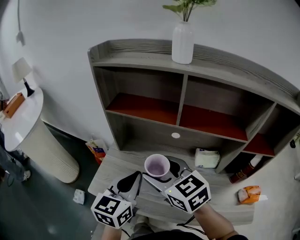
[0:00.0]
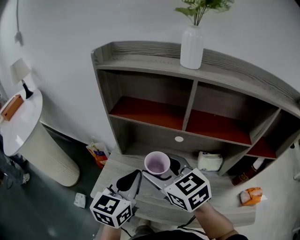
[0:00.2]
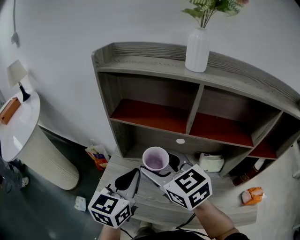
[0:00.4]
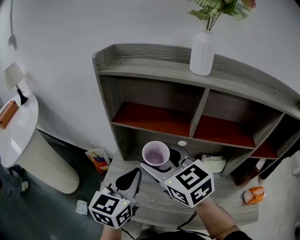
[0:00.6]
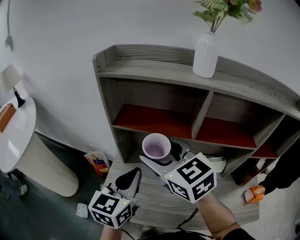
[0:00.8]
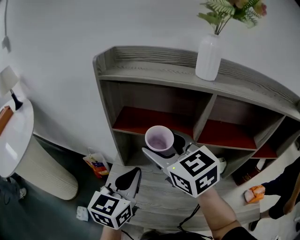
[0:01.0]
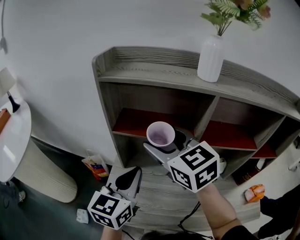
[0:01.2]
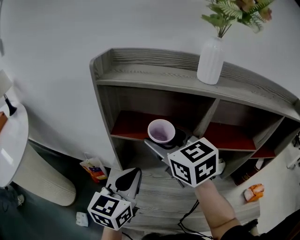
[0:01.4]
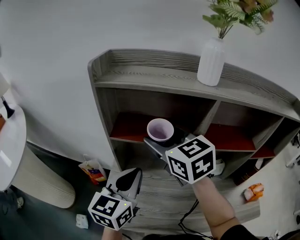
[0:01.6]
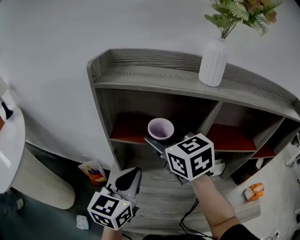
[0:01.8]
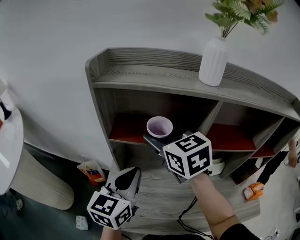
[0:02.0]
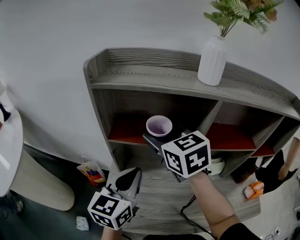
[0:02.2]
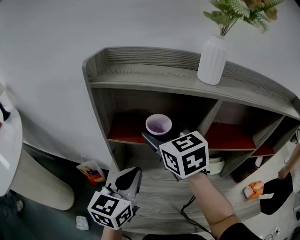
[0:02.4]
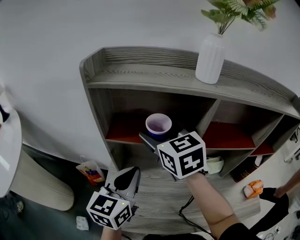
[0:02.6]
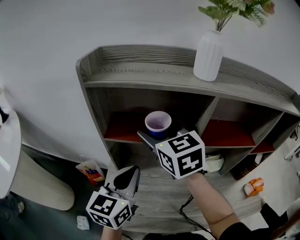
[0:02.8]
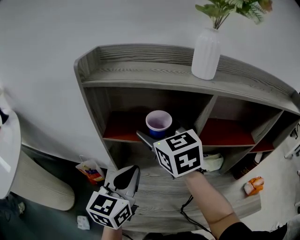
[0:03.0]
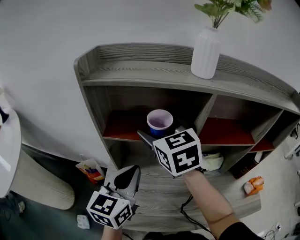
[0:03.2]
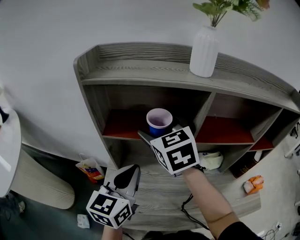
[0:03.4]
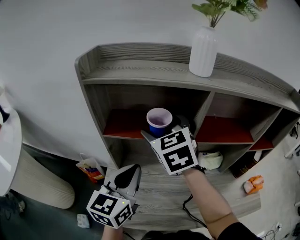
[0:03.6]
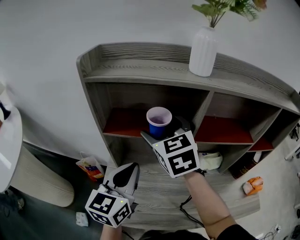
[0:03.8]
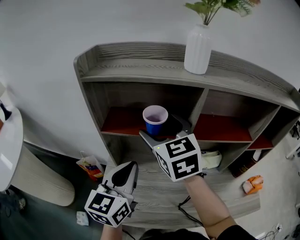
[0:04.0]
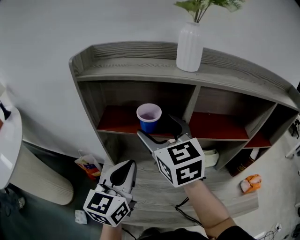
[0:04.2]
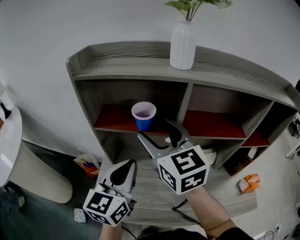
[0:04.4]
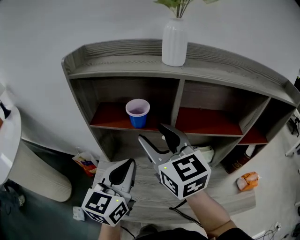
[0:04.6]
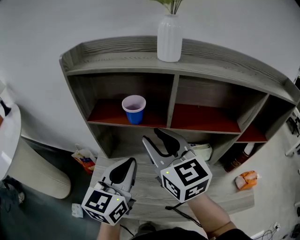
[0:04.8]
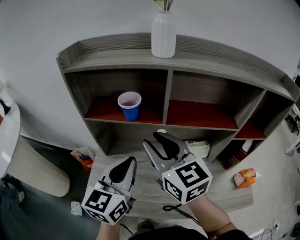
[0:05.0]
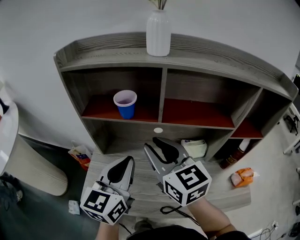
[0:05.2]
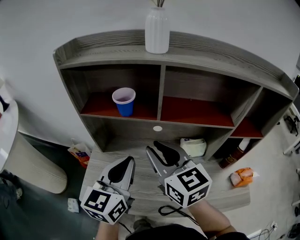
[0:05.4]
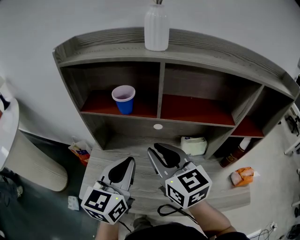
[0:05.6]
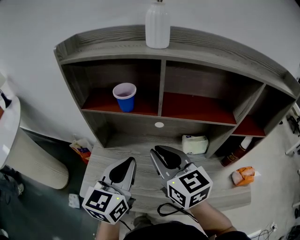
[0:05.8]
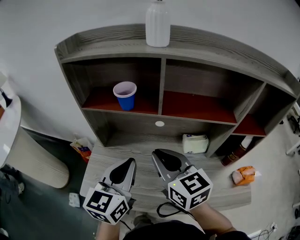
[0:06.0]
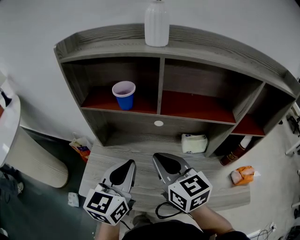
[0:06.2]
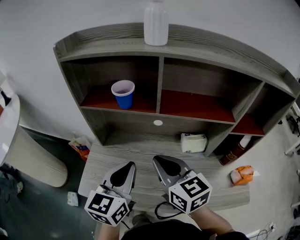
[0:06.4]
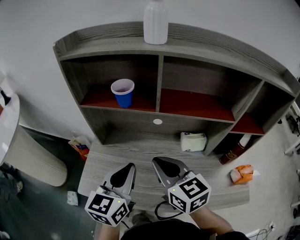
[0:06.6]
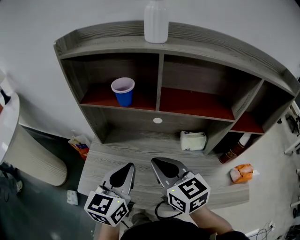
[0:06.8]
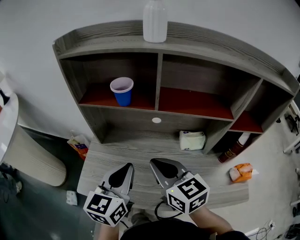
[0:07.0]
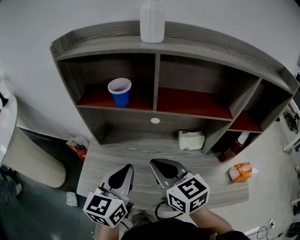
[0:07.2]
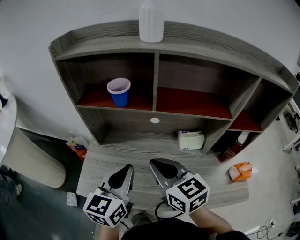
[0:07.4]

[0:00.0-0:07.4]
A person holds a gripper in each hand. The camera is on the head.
0.0 to 1.4 s: The left gripper moves forward and to the left, approximately 15 cm, while the right gripper heads forward and upward, covering about 20 cm.
1.4 to 3.0 s: The right gripper heads forward, covering roughly 5 cm.
3.0 to 4.4 s: The left gripper ends up approximately 5 cm from where it was, while the right gripper travels backward by roughly 10 cm.
4.4 to 6.0 s: The right gripper travels downward, backward and to the right by some 15 cm, and closes. Meanwhile the left gripper heads to the right and backward, covering roughly 10 cm.
6.0 to 7.4 s: The grippers move only a little.

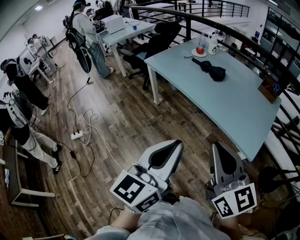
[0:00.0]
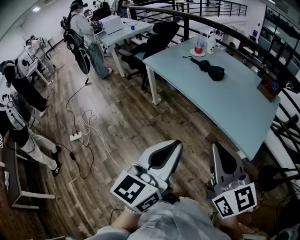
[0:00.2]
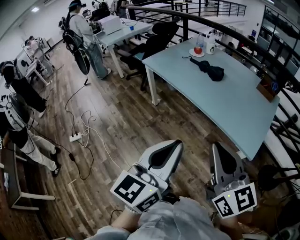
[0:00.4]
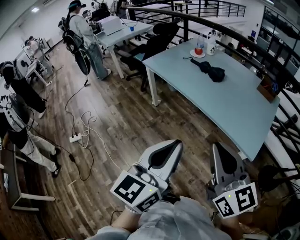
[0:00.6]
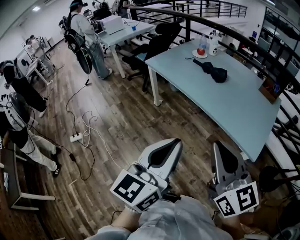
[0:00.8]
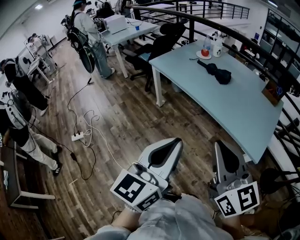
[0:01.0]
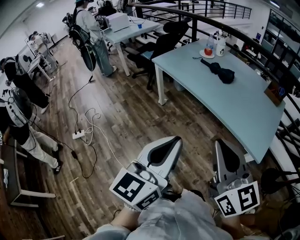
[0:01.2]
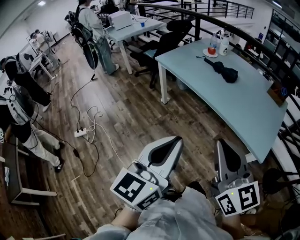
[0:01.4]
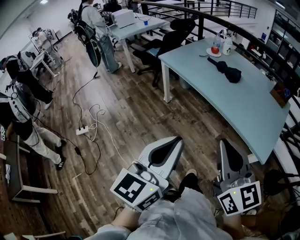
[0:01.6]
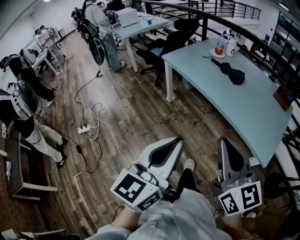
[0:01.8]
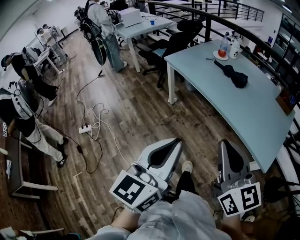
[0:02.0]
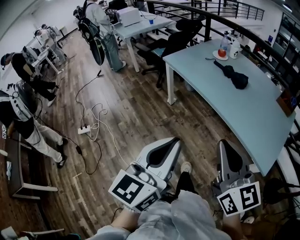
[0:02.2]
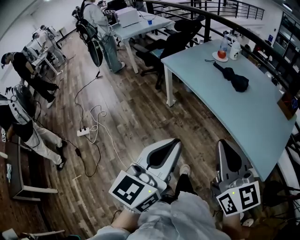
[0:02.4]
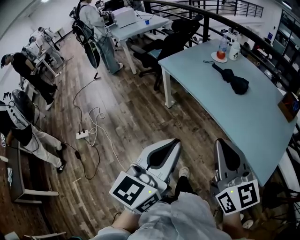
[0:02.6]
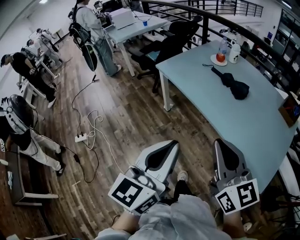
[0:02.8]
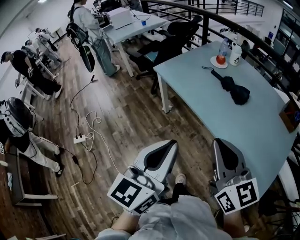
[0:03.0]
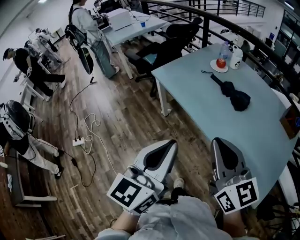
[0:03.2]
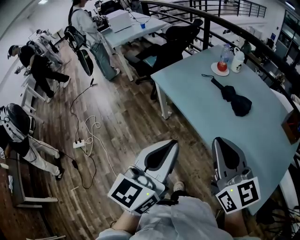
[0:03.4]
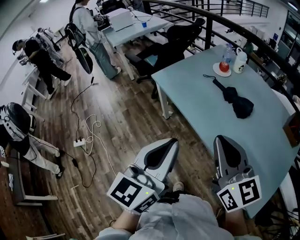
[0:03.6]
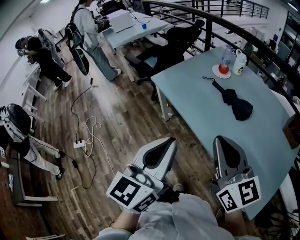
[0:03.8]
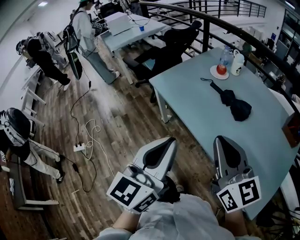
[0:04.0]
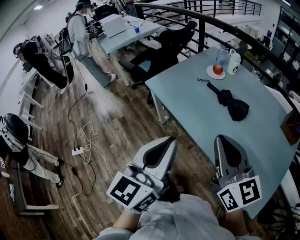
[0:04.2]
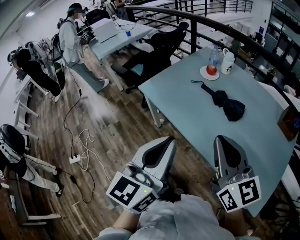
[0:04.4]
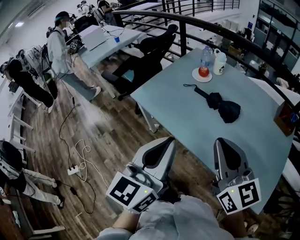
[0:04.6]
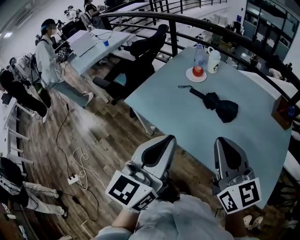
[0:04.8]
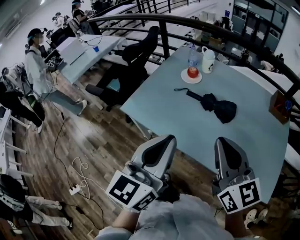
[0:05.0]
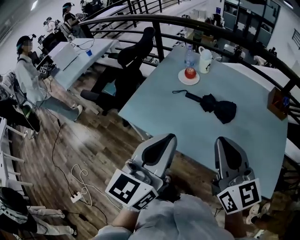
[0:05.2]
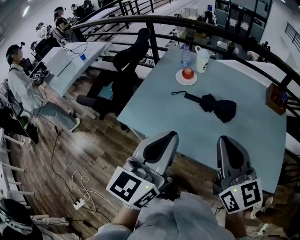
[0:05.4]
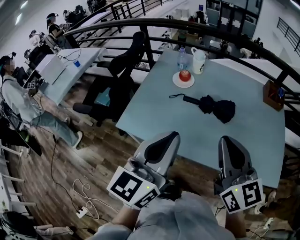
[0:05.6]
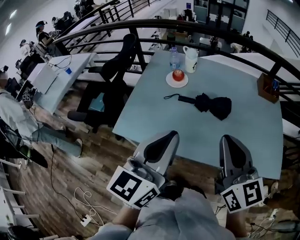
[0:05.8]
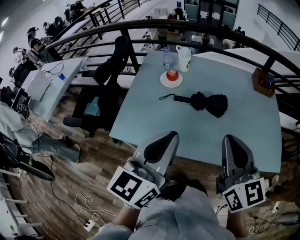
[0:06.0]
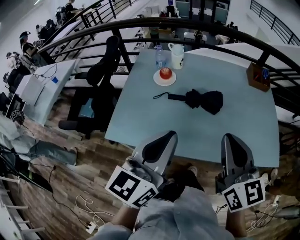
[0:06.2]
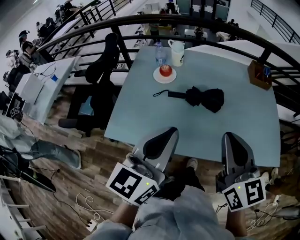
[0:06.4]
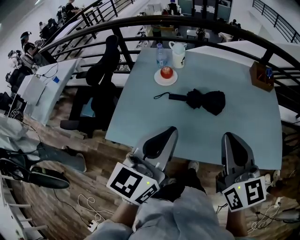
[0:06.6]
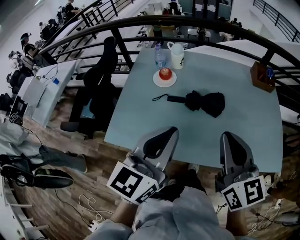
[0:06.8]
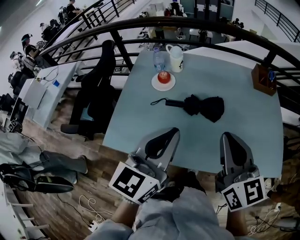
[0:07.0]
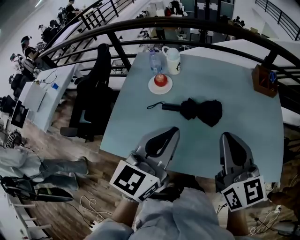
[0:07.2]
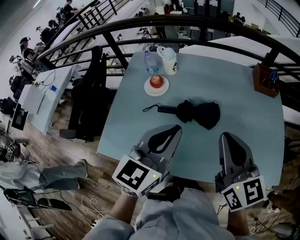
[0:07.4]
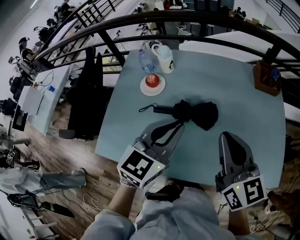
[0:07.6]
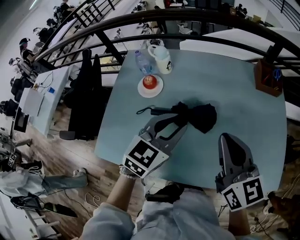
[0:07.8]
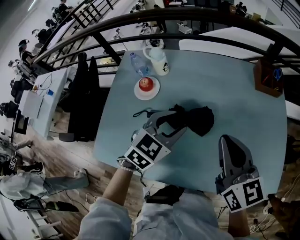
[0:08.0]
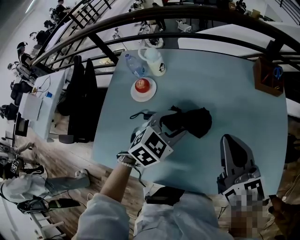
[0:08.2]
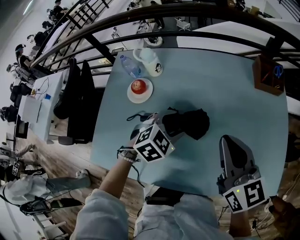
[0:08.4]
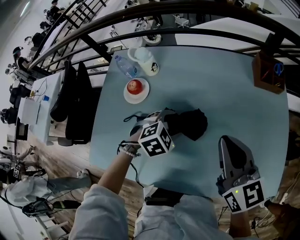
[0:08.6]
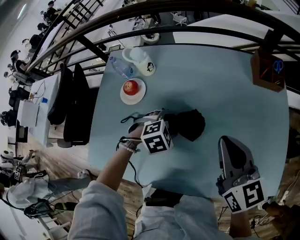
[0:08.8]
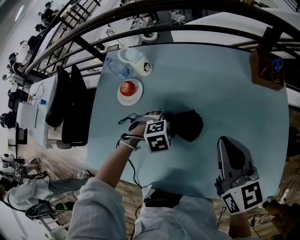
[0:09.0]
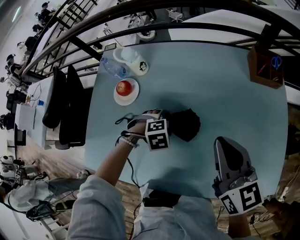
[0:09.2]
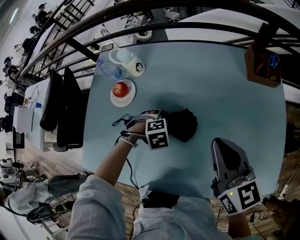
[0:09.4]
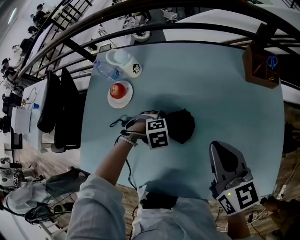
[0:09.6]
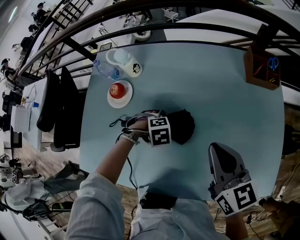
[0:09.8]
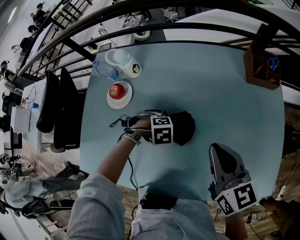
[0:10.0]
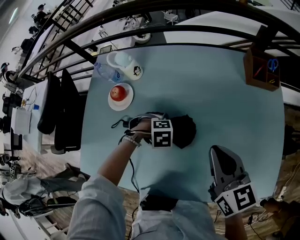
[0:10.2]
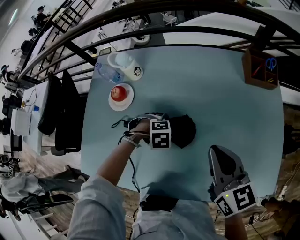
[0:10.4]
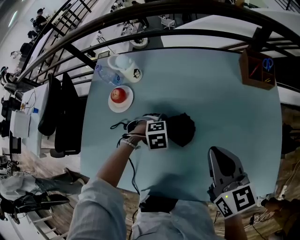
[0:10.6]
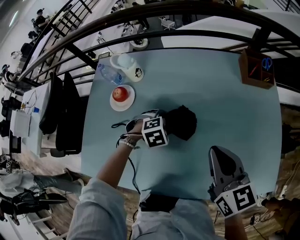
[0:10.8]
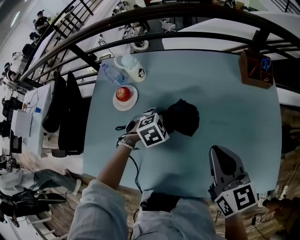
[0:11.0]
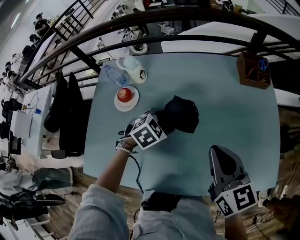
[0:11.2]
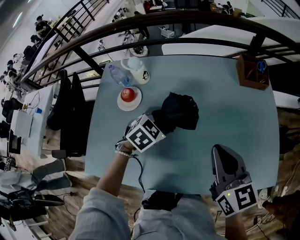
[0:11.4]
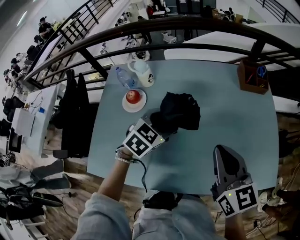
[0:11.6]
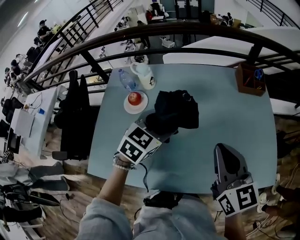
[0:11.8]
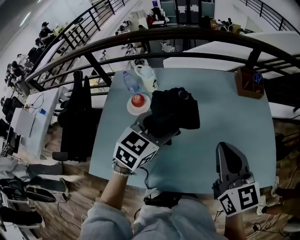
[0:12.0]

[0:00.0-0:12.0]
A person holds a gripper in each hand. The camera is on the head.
0.0 to 1.6 s: Both grippers travel together to the left, roughly 10 cm.
1.6 to 3.0 s: The two grippers go about 25 cm forward.
3.0 to 4.4 s: The two grippers go approximately 15 cm forward.
4.4 to 6.0 s: The right gripper shifts by approximately 10 cm, and changes its angle by some 40 degrees. The left gripper moves roughly 20 cm, and rotates about 40 degrees.
6.0 to 7.6 s: The left gripper shifts roughly 25 cm forward, to the right and downward, and turns by some 30 degrees. The right gripper shifts approximately 20 cm forward and to the right.
7.6 to 9.0 s: The left gripper travels downward and forward by about 30 cm, points its fingers about 60 degrees further downward, and opens up. The right gripper moves forward, to the right and downward, roughly 15 cm.
9.0 to 10.4 s: The left gripper goes roughly 5 cm downward.
10.4 to 12.0 s: The left gripper is displaced upward by roughly 30 cm, and points its fingers some 60 degrees further upward; the right gripper is displaced upward by approximately 10 cm.

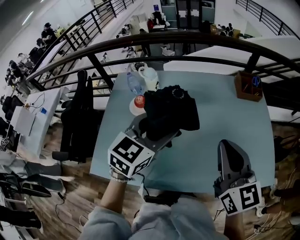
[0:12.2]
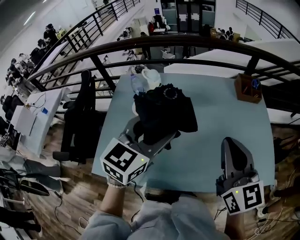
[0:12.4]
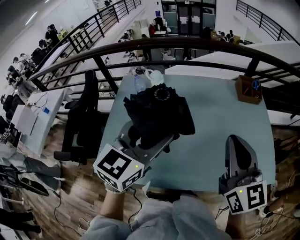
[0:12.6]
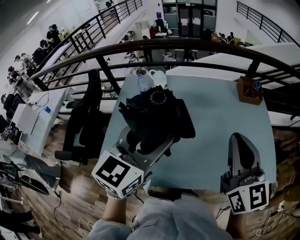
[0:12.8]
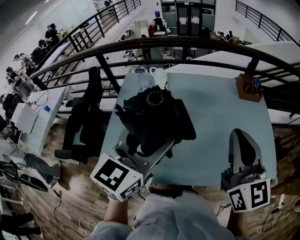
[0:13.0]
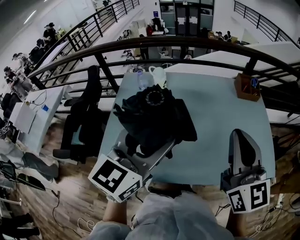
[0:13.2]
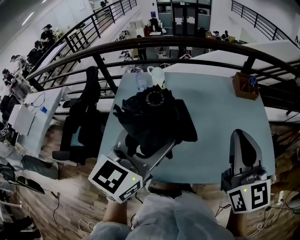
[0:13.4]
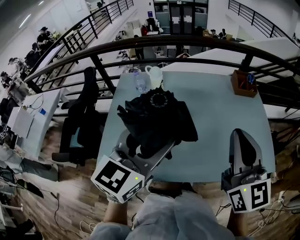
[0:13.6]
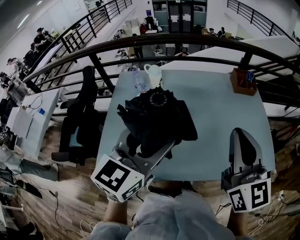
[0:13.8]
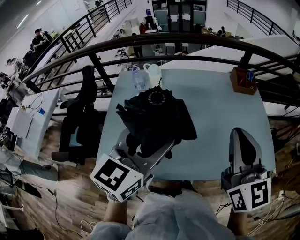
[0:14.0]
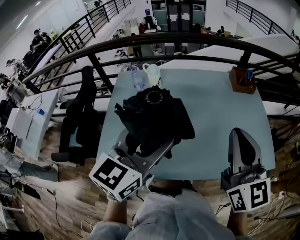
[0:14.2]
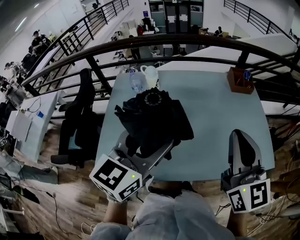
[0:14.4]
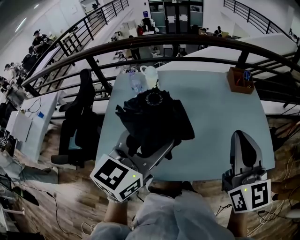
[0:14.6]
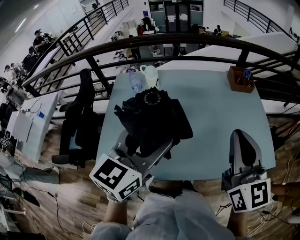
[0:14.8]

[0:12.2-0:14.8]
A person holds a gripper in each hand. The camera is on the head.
12.2 to 13.4 s: The left gripper moves backward, upward and to the left, roughly 15 cm. Meanwhile the right gripper moves upward, roughly 5 cm.
13.4 to 14.8 s: The grippers make only small movements.

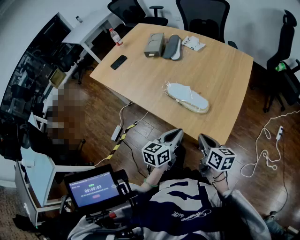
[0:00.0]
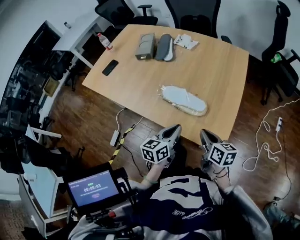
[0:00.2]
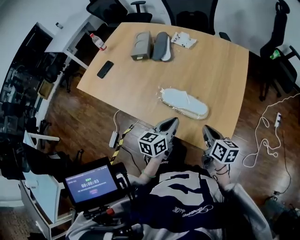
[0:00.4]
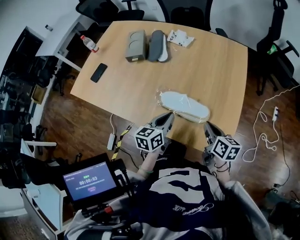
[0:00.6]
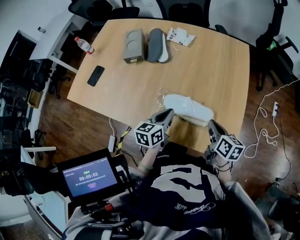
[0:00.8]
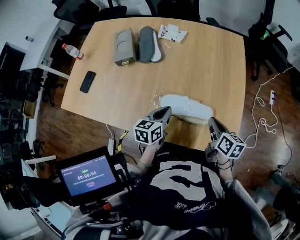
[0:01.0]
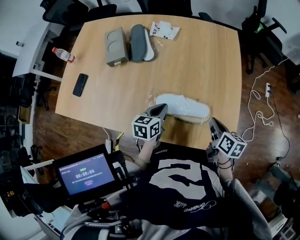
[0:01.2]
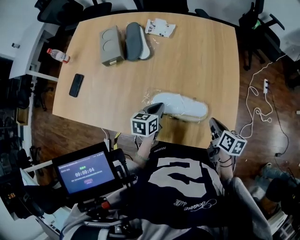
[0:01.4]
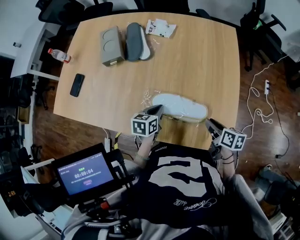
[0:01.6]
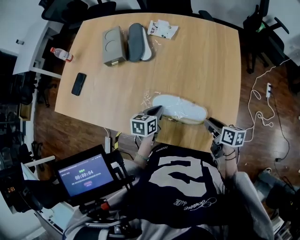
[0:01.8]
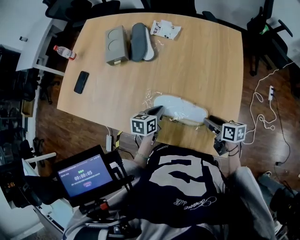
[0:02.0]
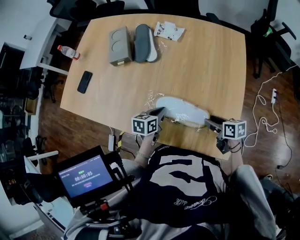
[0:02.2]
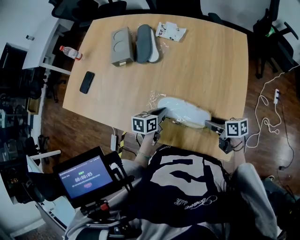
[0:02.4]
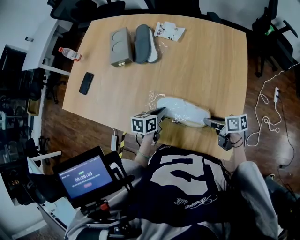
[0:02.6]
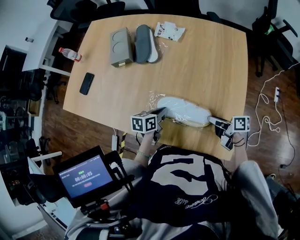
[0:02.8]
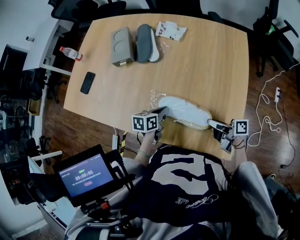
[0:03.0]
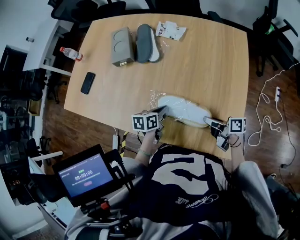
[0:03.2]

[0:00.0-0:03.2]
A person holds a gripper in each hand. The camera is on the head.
0.0 to 1.6 s: The right gripper shifts some 20 cm forward and downward, rotates approximately 30 degrees, and opens, while the left gripper is displaced forward, downward and to the left by approximately 30 cm, and rotates approximately 30 degrees.
1.6 to 3.2 s: The right gripper changes place by about 5 cm, turns by roughly 40 degrees, and opens, then closes once more.
